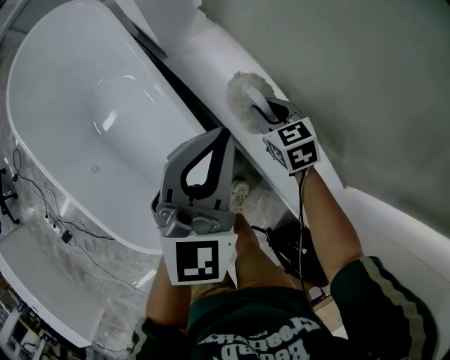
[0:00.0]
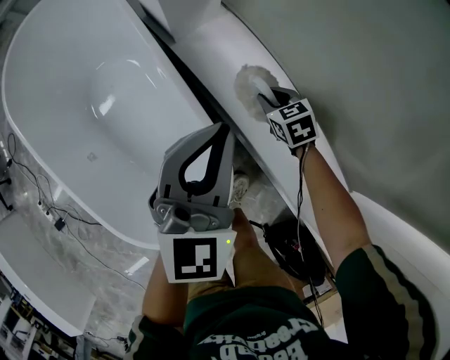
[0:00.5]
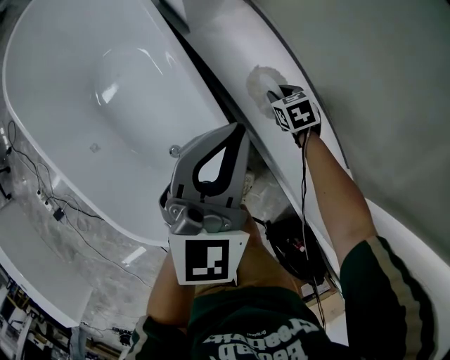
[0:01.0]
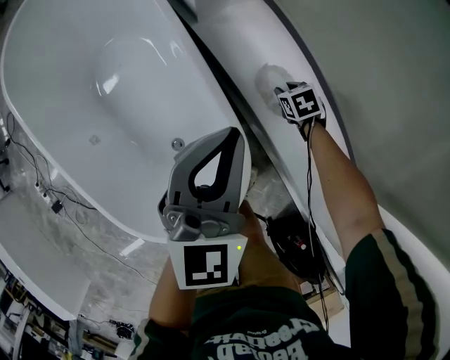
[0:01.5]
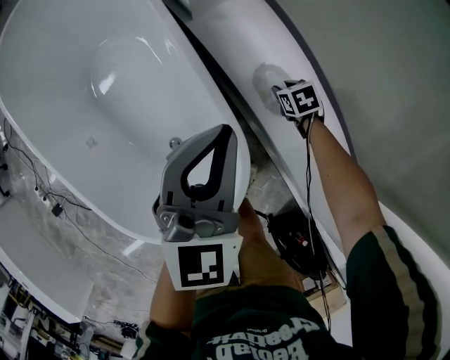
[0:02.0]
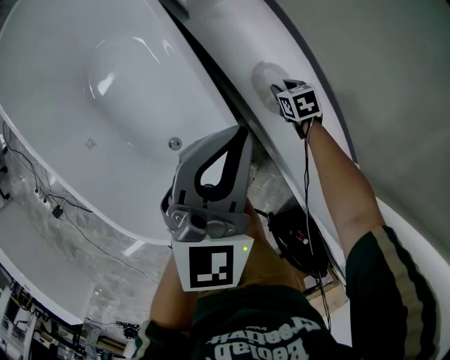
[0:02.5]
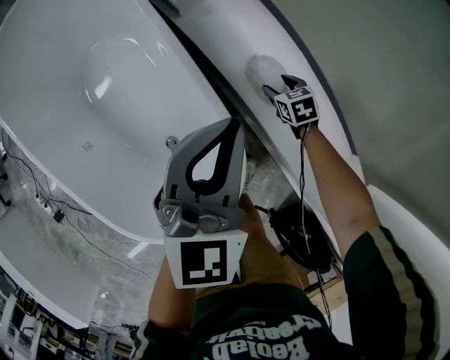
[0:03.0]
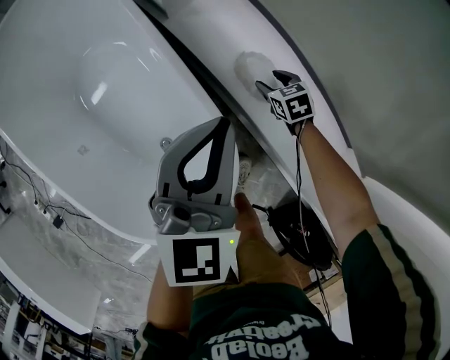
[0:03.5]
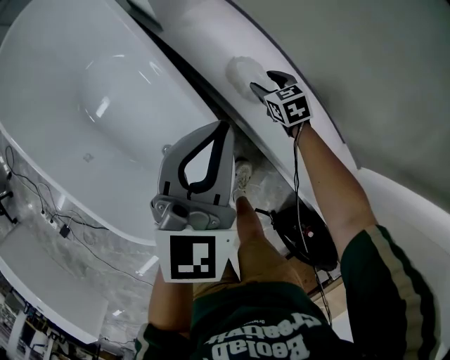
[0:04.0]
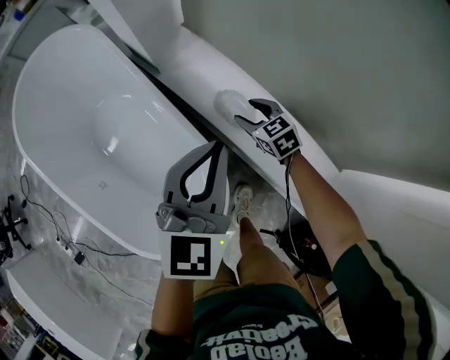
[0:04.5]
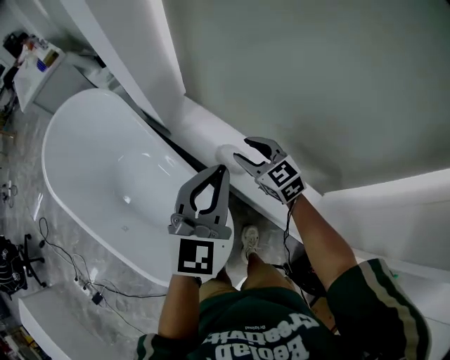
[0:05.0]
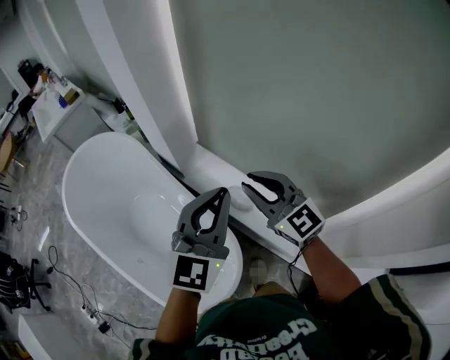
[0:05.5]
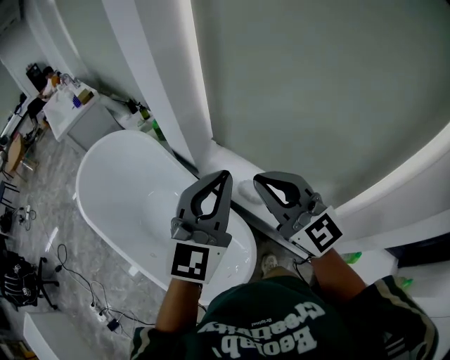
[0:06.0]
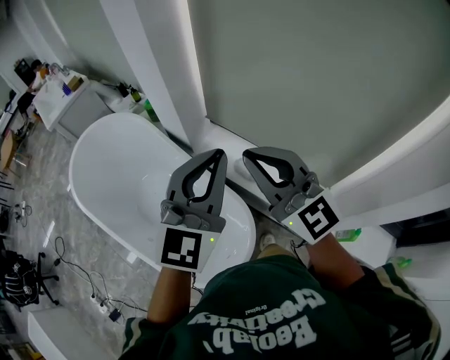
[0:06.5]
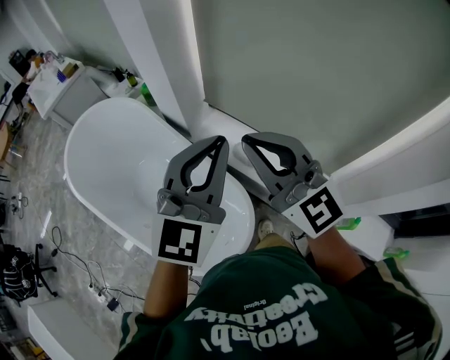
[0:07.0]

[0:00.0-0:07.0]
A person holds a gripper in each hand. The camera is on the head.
0:00.0 to 0:02.0: The left gripper goes some 10 cm downward and to the left. The right gripper is displaced downward by approximately 25 cm, and changes its angle by approximately 30 degrees.
0:02.0 to 0:03.5: The right gripper opens up.
0:03.5 to 0:05.0: The left gripper heads upward, covering roughly 20 cm, while the right gripper moves upward, some 35 cm, and points its fingers some 30 degrees further upward.
0:05.0 to 0:07.0: The right gripper goes some 35 cm upward and backward, angles its fingers upward, by approximately 30 degrees, and closes. The left gripper moves upward, to the left and backward, some 20 cm.

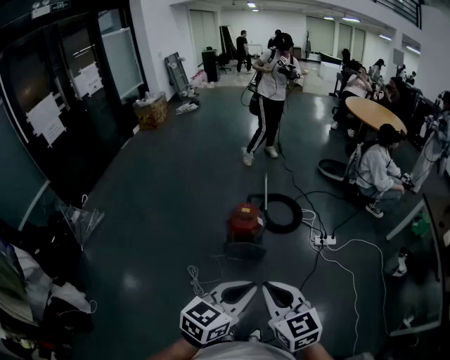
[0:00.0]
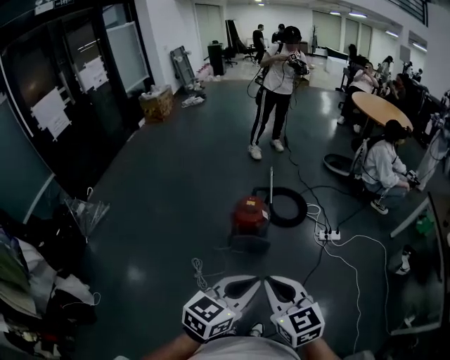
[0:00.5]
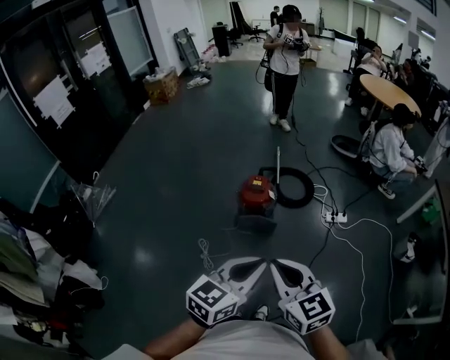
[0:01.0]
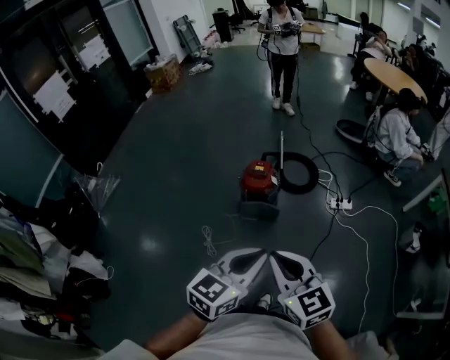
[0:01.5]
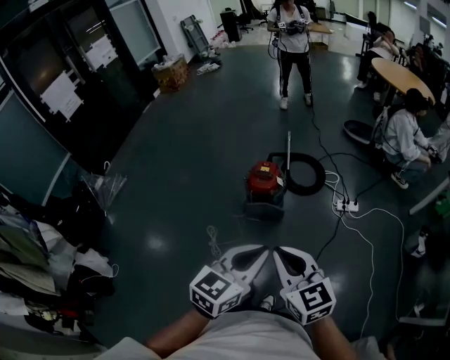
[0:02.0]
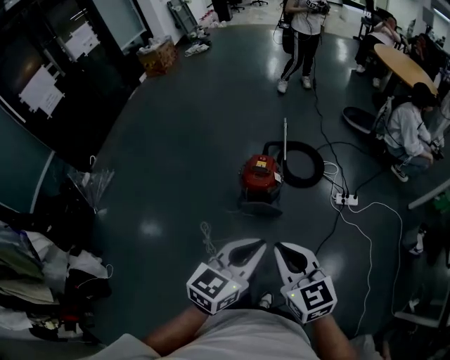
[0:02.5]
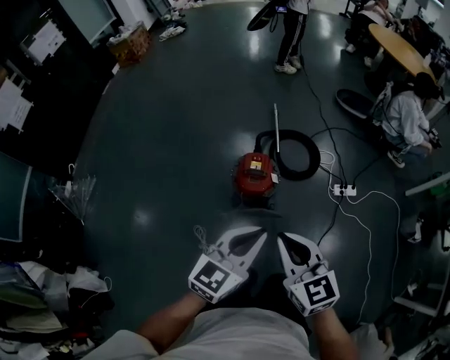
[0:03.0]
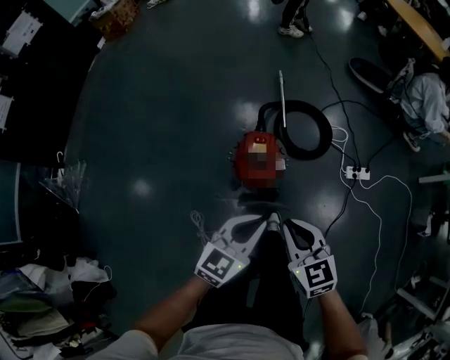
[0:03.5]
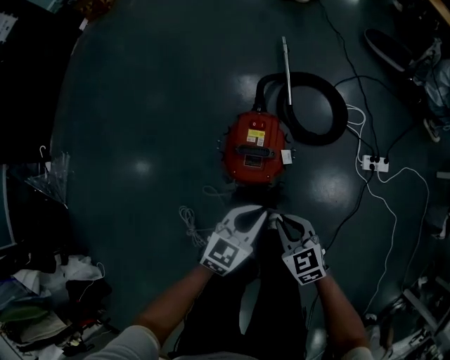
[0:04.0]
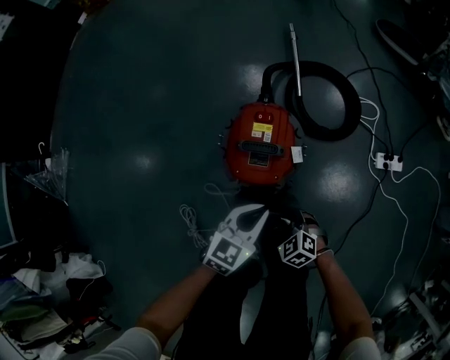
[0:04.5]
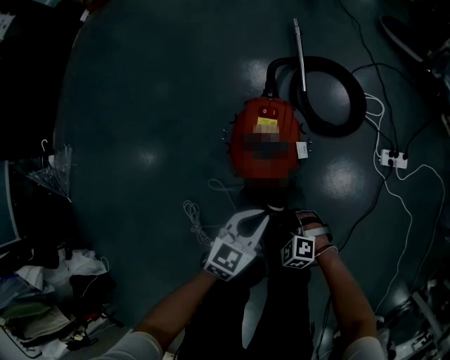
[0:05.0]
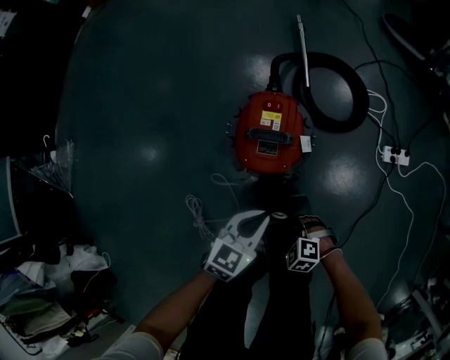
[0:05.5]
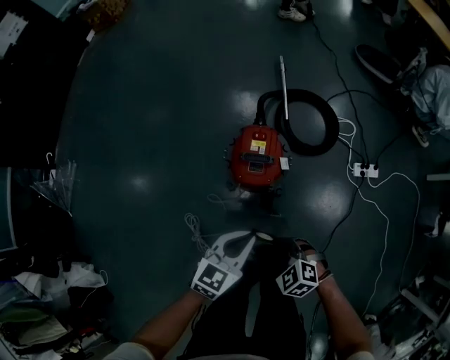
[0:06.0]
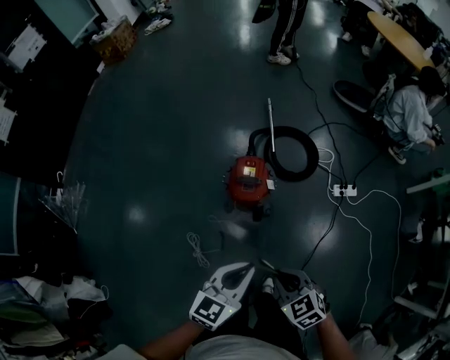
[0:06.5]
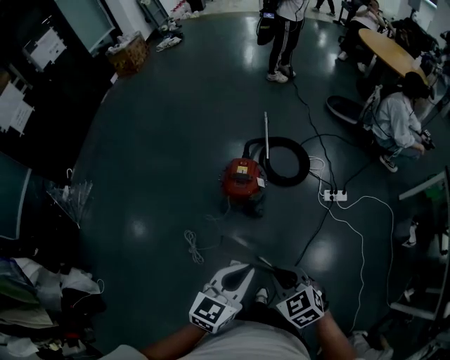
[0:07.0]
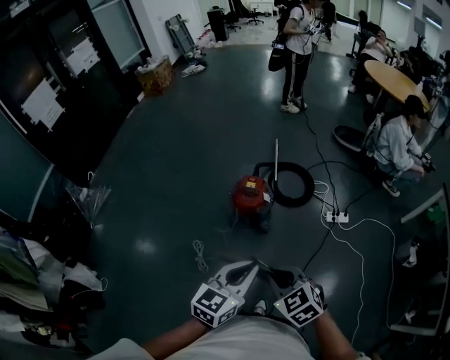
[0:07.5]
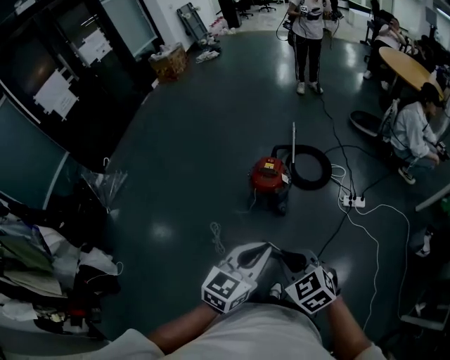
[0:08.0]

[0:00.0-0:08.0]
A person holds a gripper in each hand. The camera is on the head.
0:00.0 to 0:02.0: There are only small adjustments of the grippers.
0:02.0 to 0:04.0: The pair of grippers is taken forward, roughly 50 cm. Both grippers move downward, roughly 50 cm. The right gripper rotates roughly 30 degrees.
0:04.0 to 0:06.0: The left gripper travels upward, backward and to the left by about 15 cm. Meanwhile the right gripper is displaced backward by roughly 10 cm, goes downward and returns, about 20 cm each way, swivels about 30 degrees, and opens, then closes again.
0:06.0 to 0:08.0: Both grippers travel together upward and backward, about 50 cm.

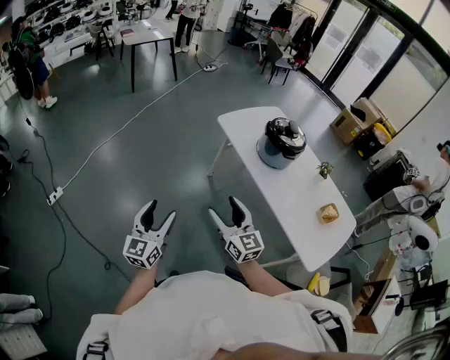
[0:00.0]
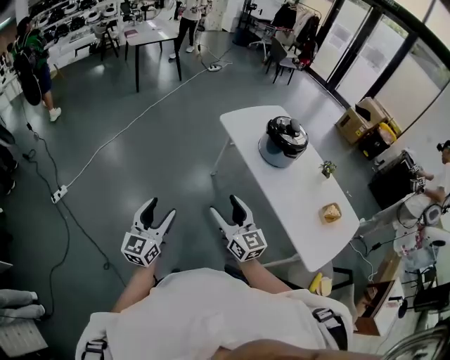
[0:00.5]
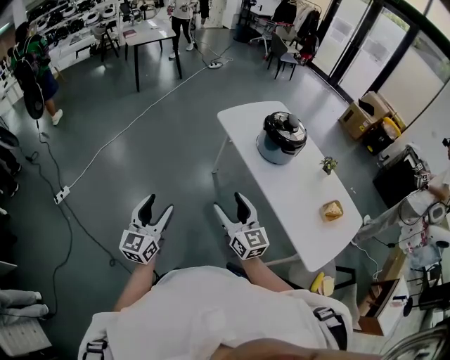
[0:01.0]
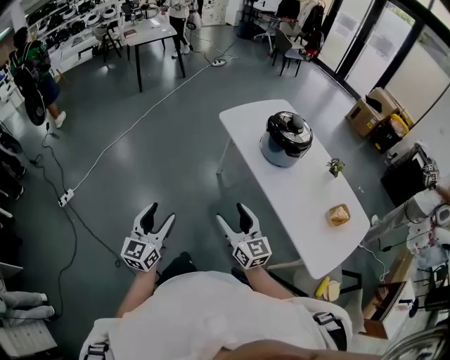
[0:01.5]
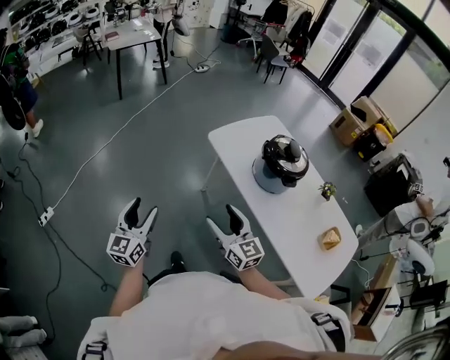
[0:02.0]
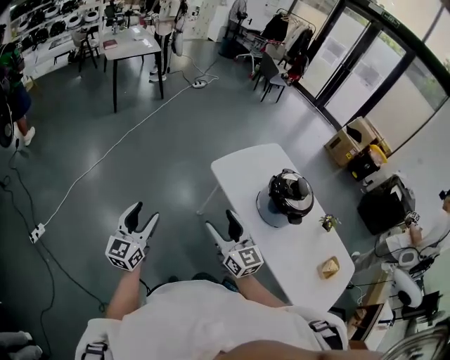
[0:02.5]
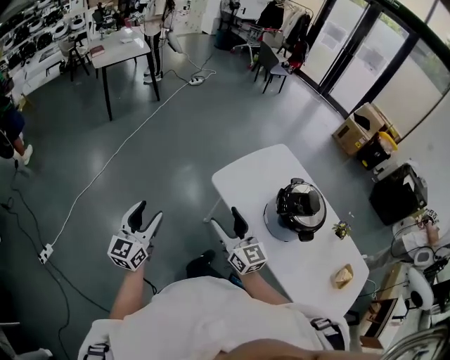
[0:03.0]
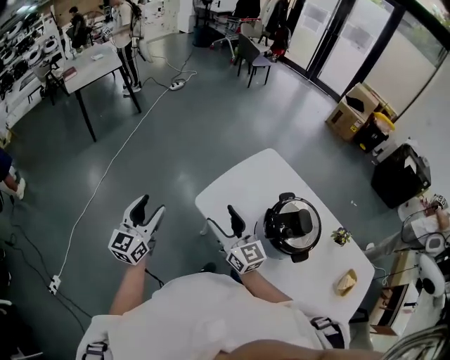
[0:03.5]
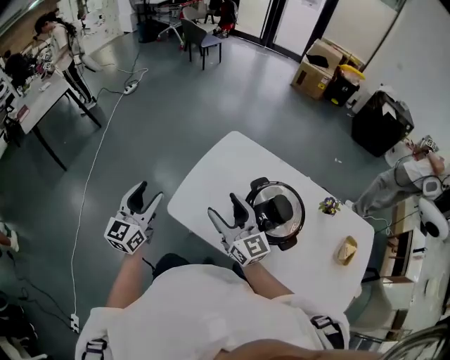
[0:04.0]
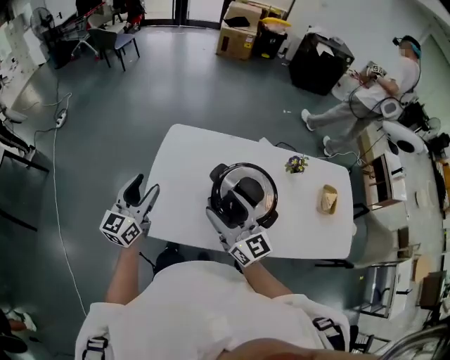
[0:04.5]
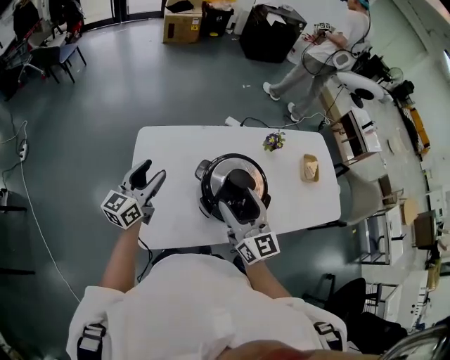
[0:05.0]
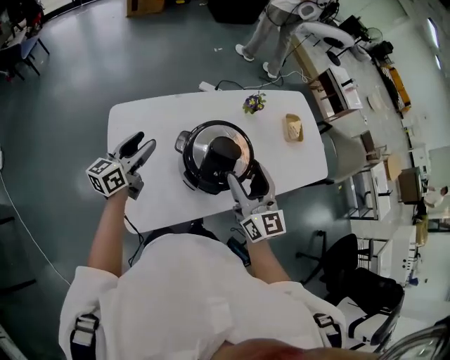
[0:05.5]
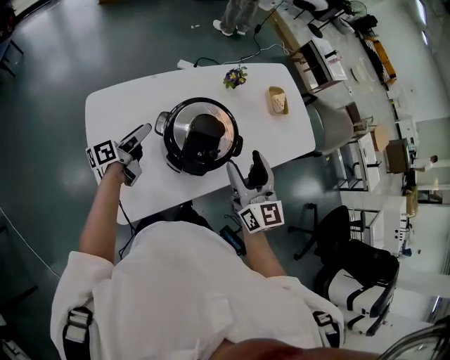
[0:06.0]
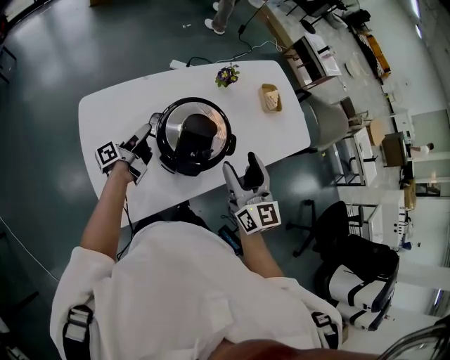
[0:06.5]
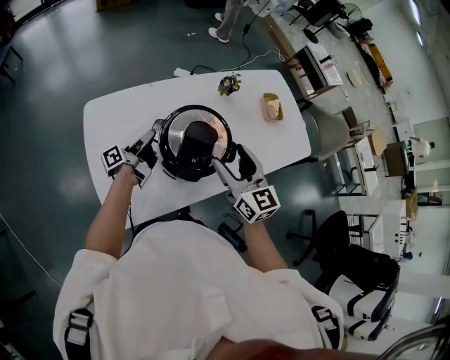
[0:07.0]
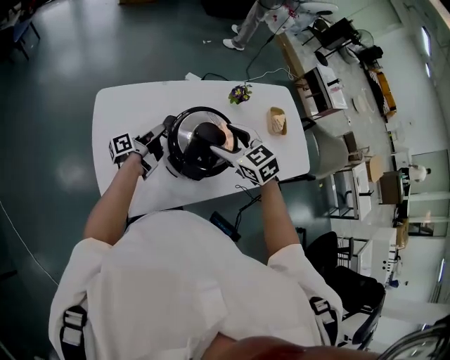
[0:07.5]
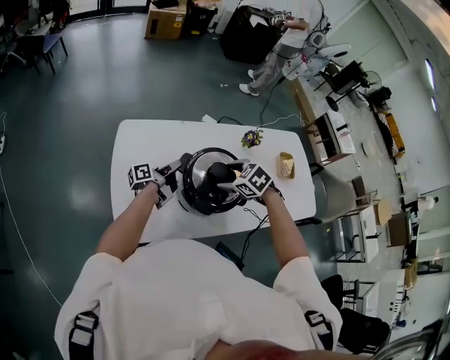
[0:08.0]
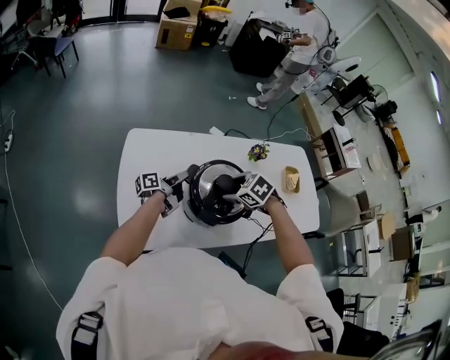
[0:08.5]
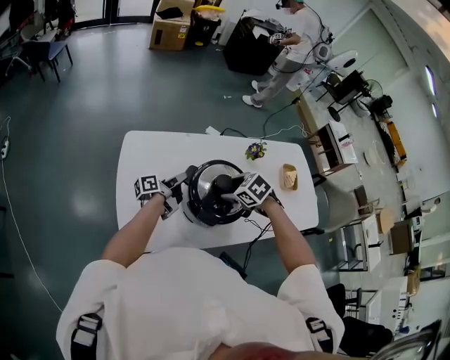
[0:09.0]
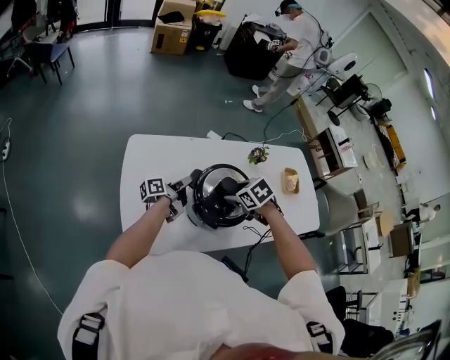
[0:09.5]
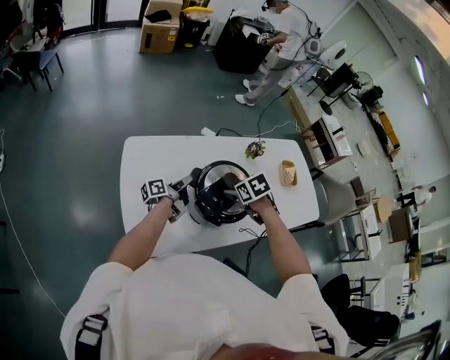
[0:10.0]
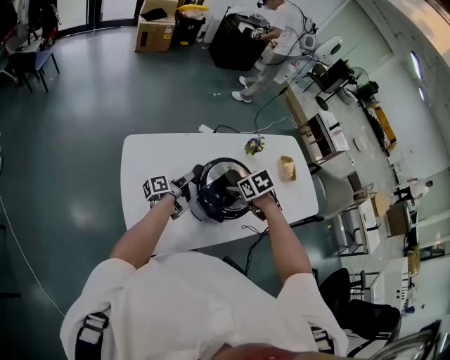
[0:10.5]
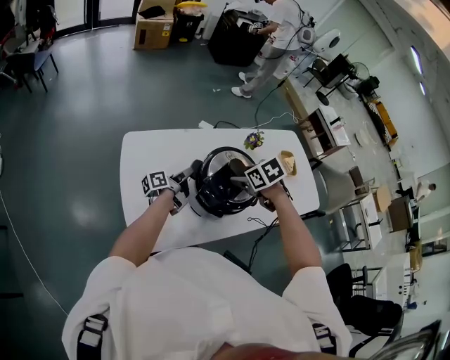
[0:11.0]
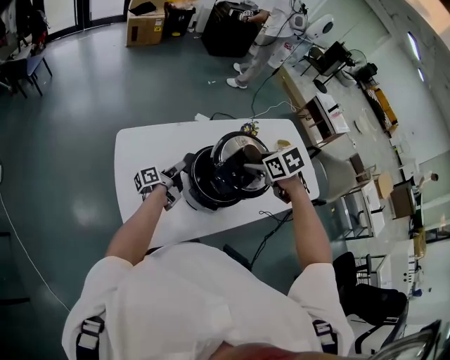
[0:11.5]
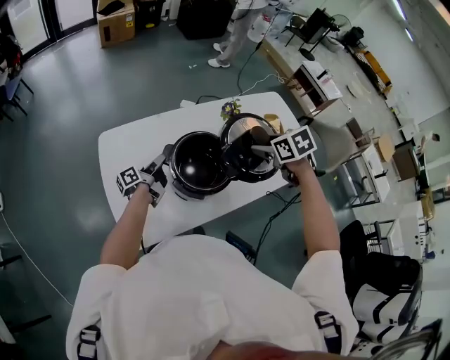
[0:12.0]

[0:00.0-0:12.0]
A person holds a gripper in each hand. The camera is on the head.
0:00.0 to 0:02.0: The grippers both shift forward by approximately 20 cm.
0:02.0 to 0:04.0: The two grippers travel together, approximately 50 cm. The left gripper turns by some 30 degrees. The right gripper changes its angle by roughly 30 degrees.
0:04.0 to 0:06.0: The right gripper shifts by some 20 cm, and rotates about 70 degrees, while the left gripper shifts by approximately 35 cm, and rotates roughly 90 degrees.
0:06.0 to 0:08.0: The left gripper moves downward, roughly 5 cm, rotates roughly 20 degrees, and closes up. The right gripper travels downward by some 15 cm, and tips its fingers downward by some 60 degrees.
0:08.0 to 0:10.0: The right gripper changes its angle by approximately 30 degrees.
0:10.0 to 0:12.0: The right gripper travels to the right and upward by about 20 cm.
